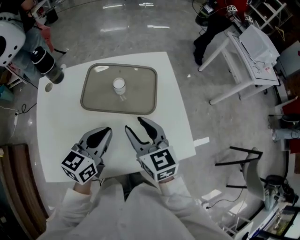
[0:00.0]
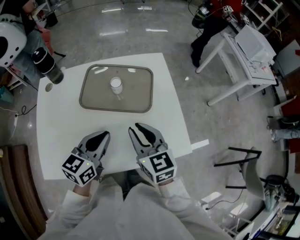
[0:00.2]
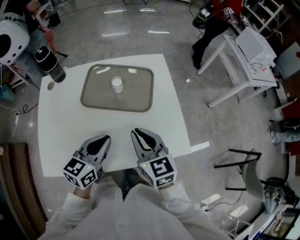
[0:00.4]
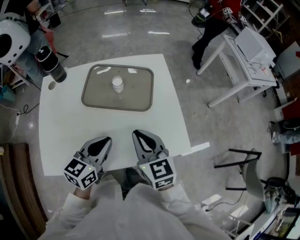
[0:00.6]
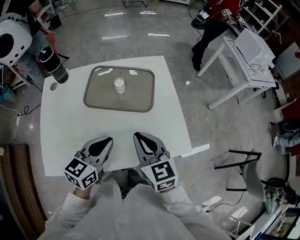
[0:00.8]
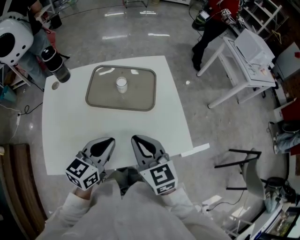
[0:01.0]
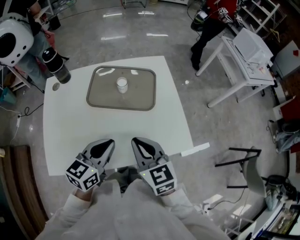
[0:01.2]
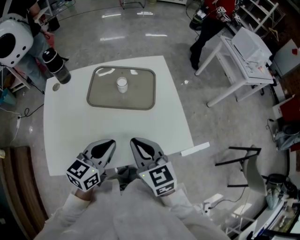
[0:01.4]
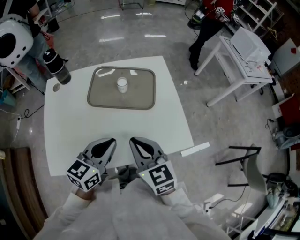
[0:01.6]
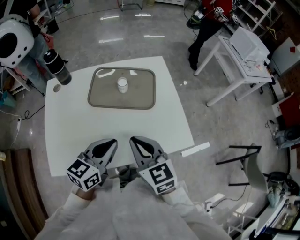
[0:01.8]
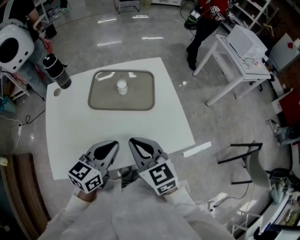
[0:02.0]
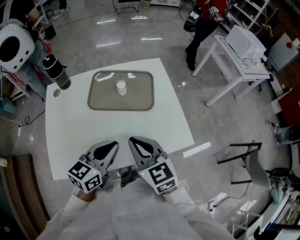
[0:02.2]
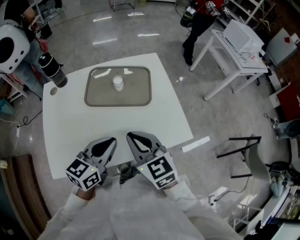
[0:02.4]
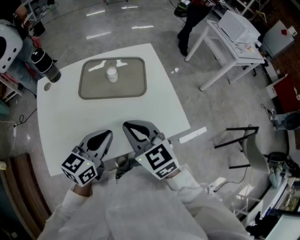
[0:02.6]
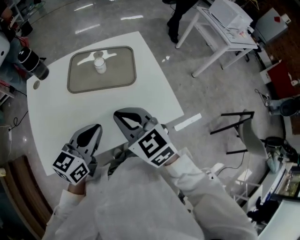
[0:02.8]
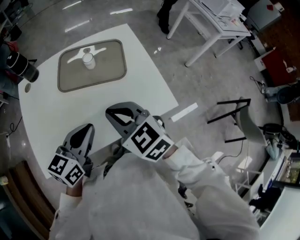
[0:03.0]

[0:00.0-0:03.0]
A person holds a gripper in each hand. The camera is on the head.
0:00.0 to 0:01.6: The two grippers go about 10 cm backward. The right gripper closes its fingers.
0:01.6 to 0:03.0: The grippers move only a little.

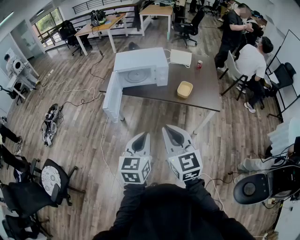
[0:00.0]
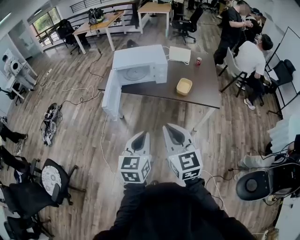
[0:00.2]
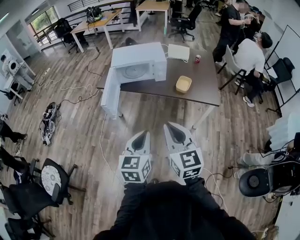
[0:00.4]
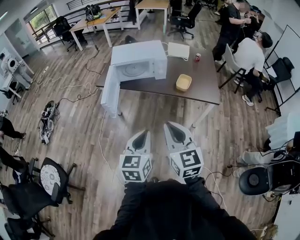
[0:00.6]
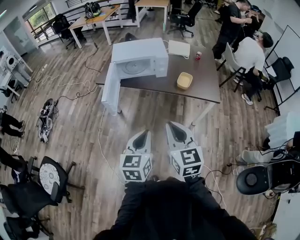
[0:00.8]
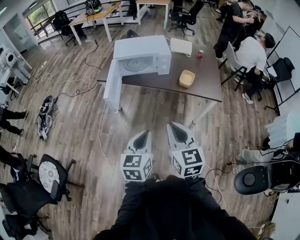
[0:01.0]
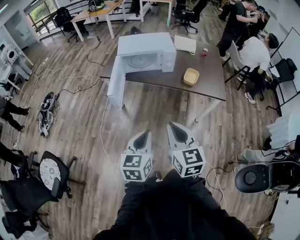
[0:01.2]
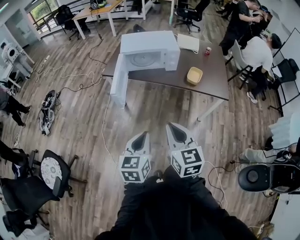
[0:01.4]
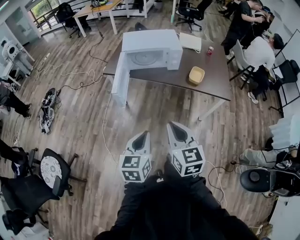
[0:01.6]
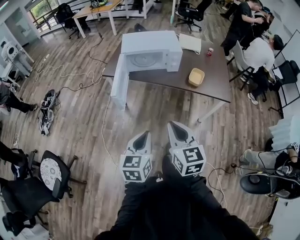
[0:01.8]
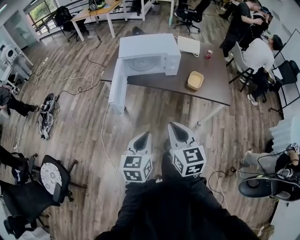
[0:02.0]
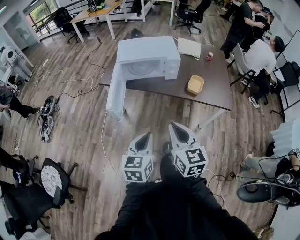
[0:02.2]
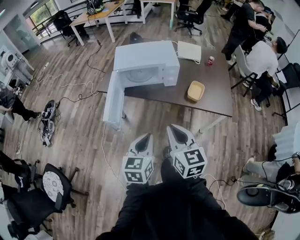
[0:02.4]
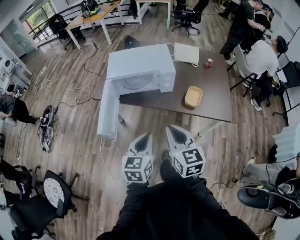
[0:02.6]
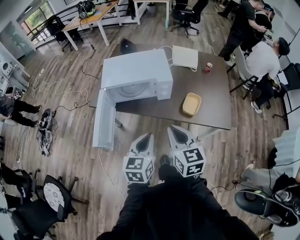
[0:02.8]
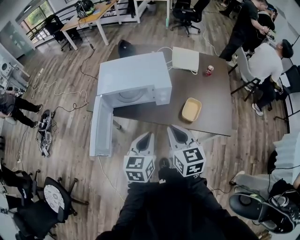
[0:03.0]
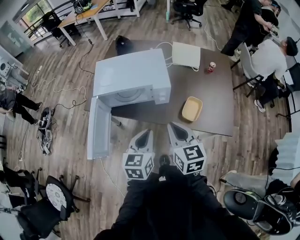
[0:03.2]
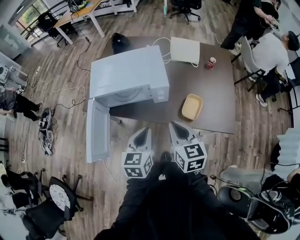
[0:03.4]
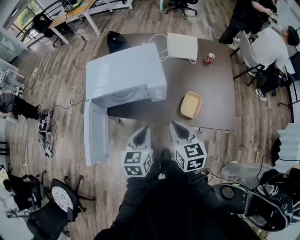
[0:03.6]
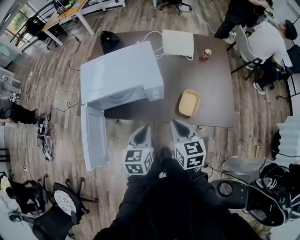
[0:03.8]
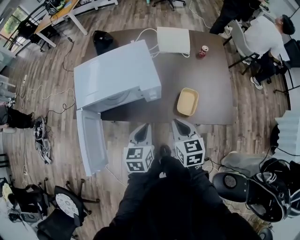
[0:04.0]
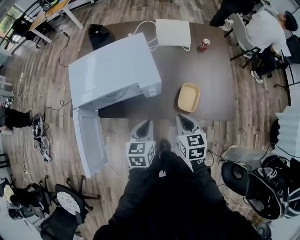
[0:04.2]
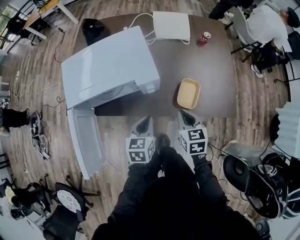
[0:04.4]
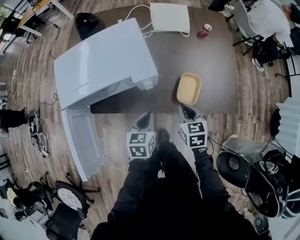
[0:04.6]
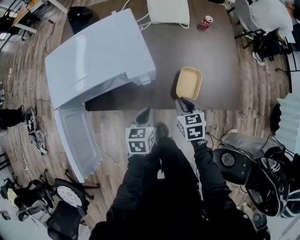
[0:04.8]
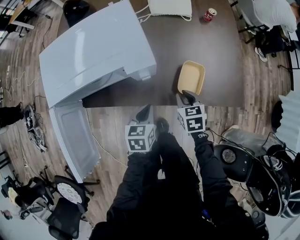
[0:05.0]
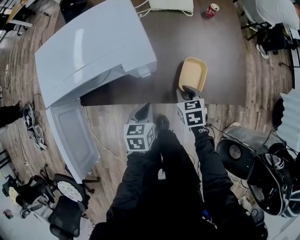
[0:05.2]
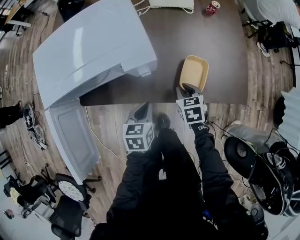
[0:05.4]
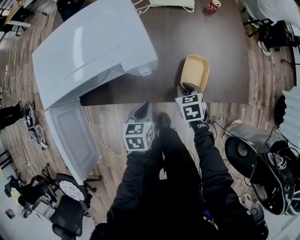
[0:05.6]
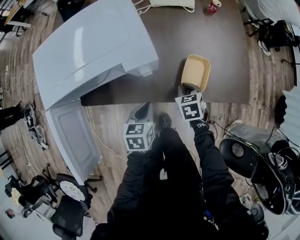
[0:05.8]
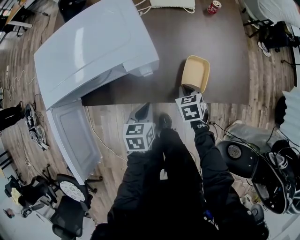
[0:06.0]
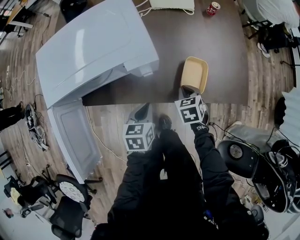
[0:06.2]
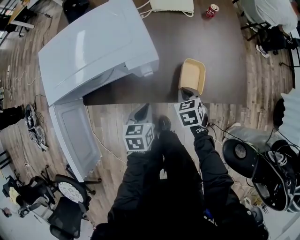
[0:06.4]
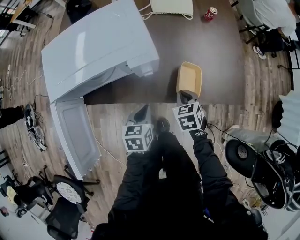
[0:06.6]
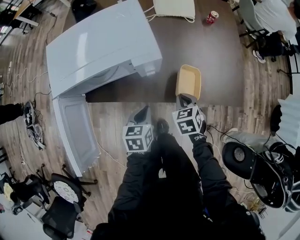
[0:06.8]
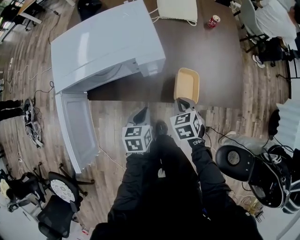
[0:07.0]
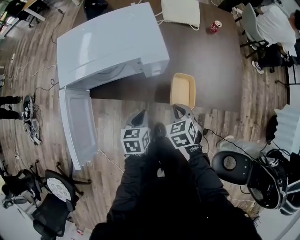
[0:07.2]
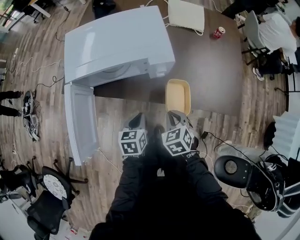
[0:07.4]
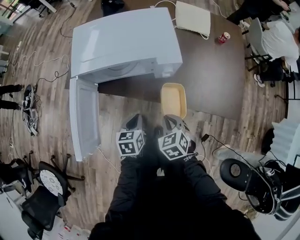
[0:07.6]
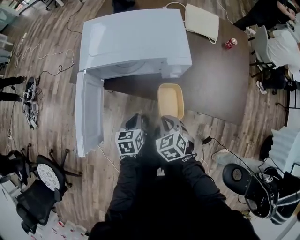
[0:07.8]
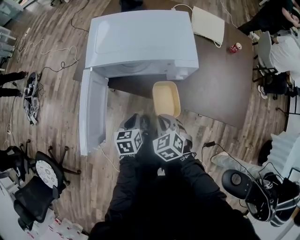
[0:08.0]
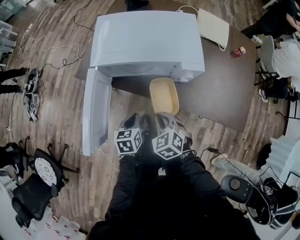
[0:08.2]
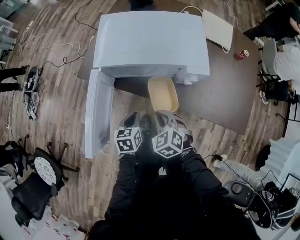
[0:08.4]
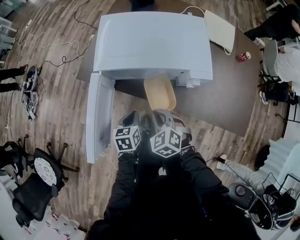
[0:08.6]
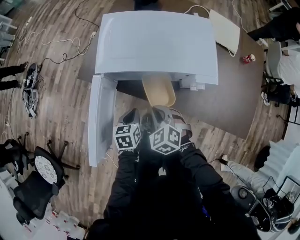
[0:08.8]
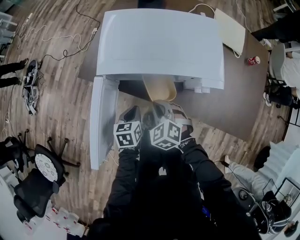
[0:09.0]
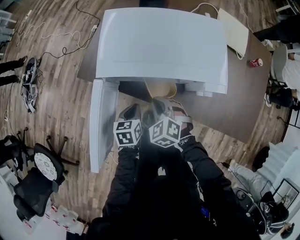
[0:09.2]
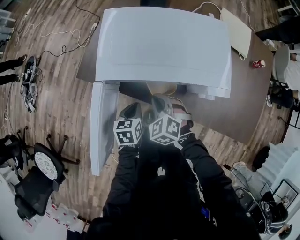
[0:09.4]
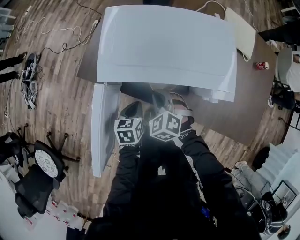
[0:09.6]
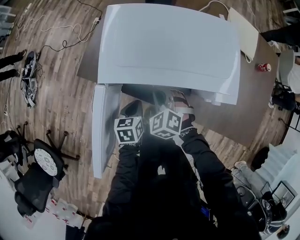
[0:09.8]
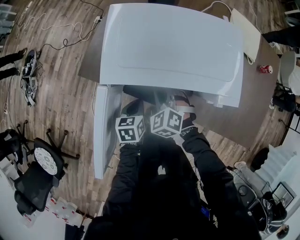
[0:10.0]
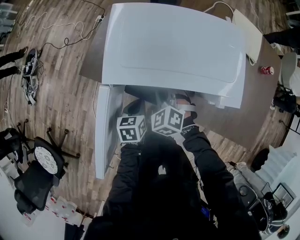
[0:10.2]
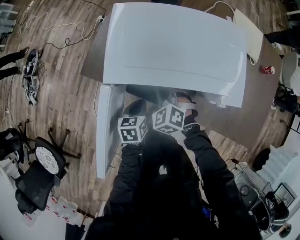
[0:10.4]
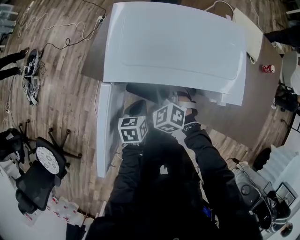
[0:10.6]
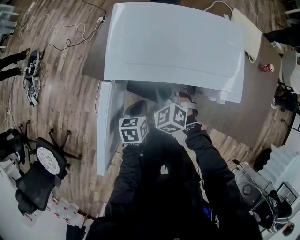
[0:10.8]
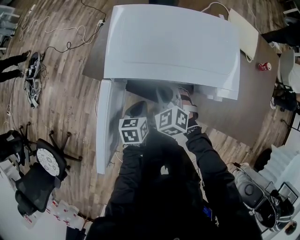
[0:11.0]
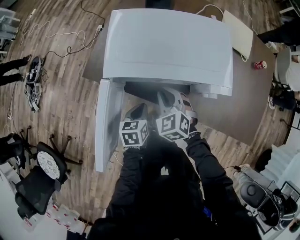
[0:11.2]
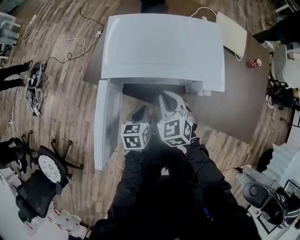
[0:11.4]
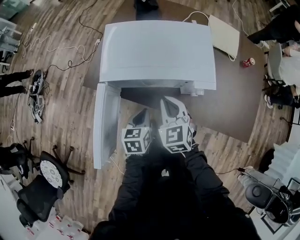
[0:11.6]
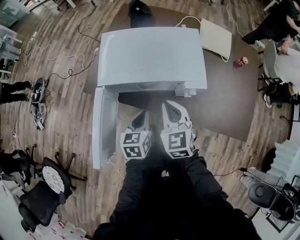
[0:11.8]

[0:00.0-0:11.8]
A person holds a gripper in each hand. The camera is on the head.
0:00.0 to 0:01.4: The right gripper moves downward and to the left, approximately 10 cm. Meanwhile the left gripper is displaced to the left and downward by approximately 10 cm.
0:01.4 to 0:03.0: The two grippers go about 35 cm forward.
0:03.0 to 0:04.4: The left gripper moves downward and forward, roughly 20 cm; the right gripper heads downward, forward and to the right, covering roughly 25 cm, and rotates about 20 degrees.
0:04.4 to 0:06.0: Both grippers travel together downward, about 15 cm. The right gripper turns by about 20 degrees.
0:06.0 to 0:07.4: The right gripper travels backward, upward and to the left by roughly 20 cm, and changes its angle by approximately 20 degrees, while the left gripper moves backward and to the left, about 10 cm.
0:07.4 to 0:08.8: Both grippers move to the left and forward, approximately 20 cm. The right gripper swivels some 30 degrees.
0:08.8 to 0:10.4: The right gripper moves forward, roughly 15 cm; the left gripper heads forward, covering some 5 cm.
0:10.4 to 0:11.8: The left gripper goes roughly 15 cm upward and to the right; the right gripper moves upward, backward and to the right, roughly 20 cm, and rotates roughly 40 degrees.

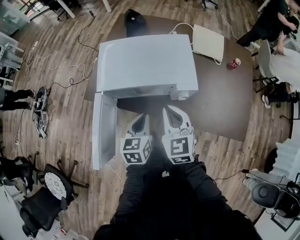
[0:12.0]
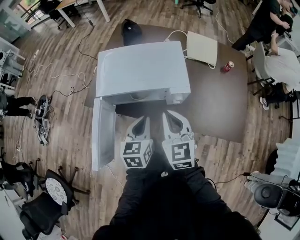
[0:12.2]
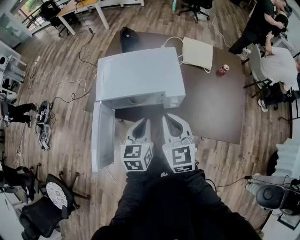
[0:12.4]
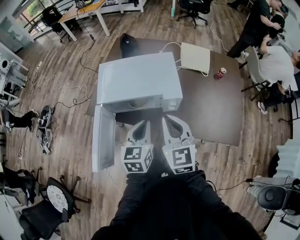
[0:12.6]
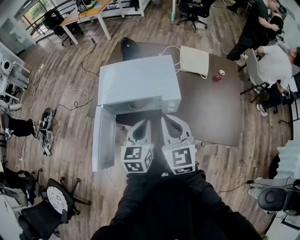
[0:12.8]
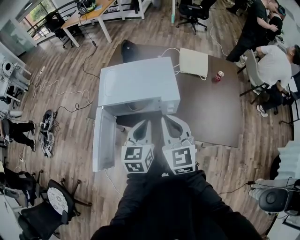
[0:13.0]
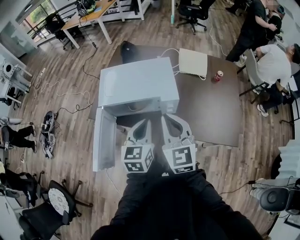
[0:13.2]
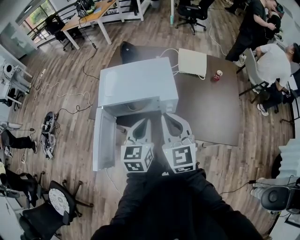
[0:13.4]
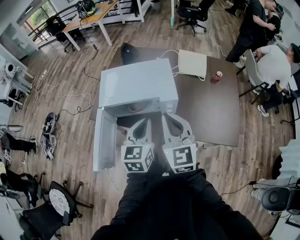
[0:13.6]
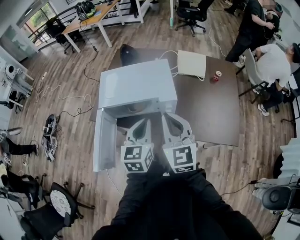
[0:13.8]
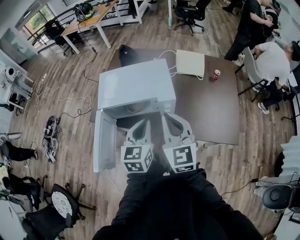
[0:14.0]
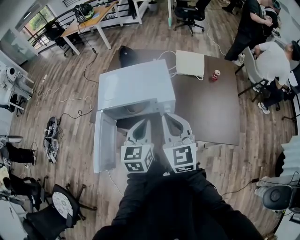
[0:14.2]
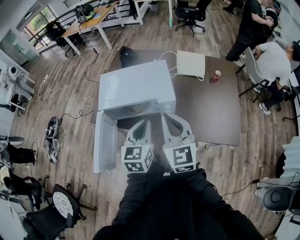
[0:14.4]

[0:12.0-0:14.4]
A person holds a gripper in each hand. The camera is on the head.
0:12.0 to 0:13.2: The left gripper travels upward and to the right by roughly 15 cm. Meanwhile the right gripper moves upward, backward and to the right, some 15 cm.
0:13.2 to 0:14.4: The grippers move only a little.

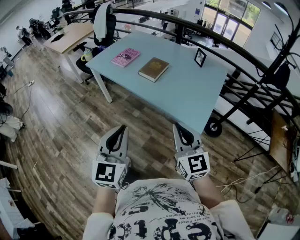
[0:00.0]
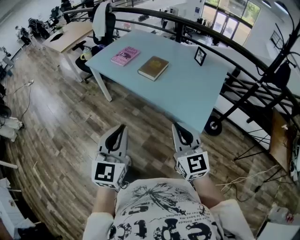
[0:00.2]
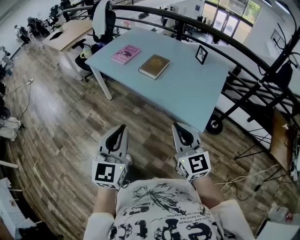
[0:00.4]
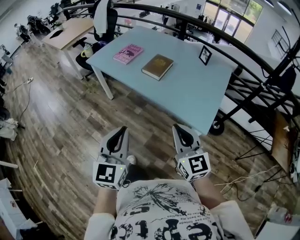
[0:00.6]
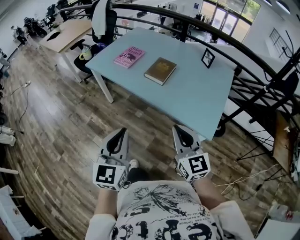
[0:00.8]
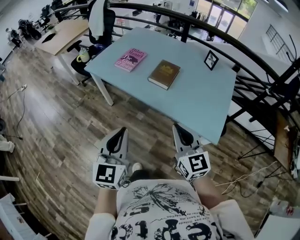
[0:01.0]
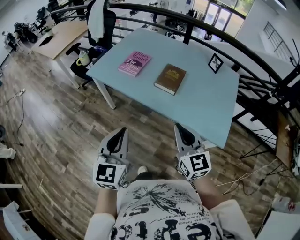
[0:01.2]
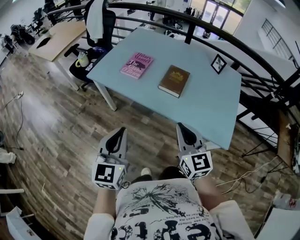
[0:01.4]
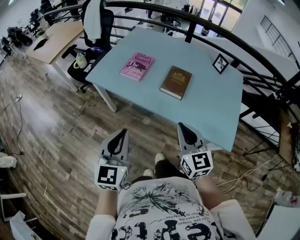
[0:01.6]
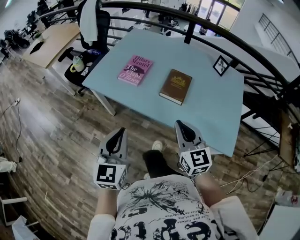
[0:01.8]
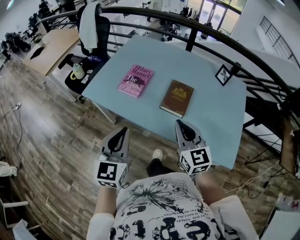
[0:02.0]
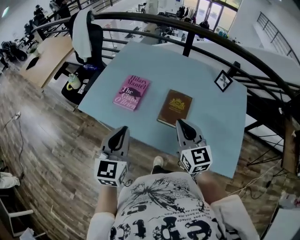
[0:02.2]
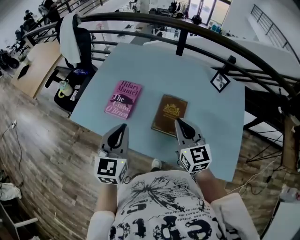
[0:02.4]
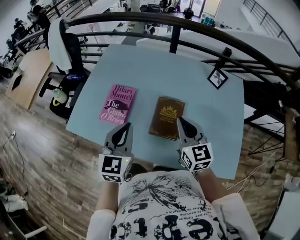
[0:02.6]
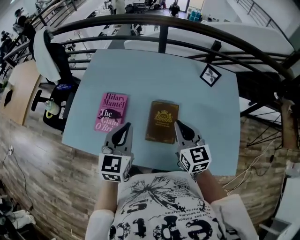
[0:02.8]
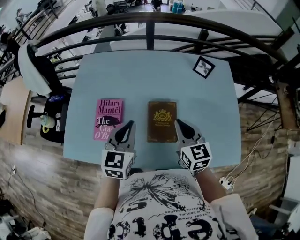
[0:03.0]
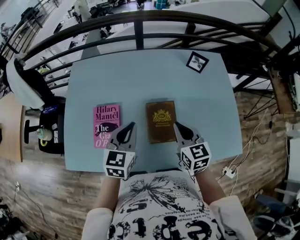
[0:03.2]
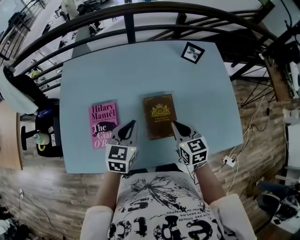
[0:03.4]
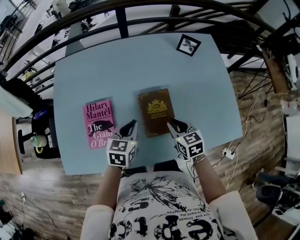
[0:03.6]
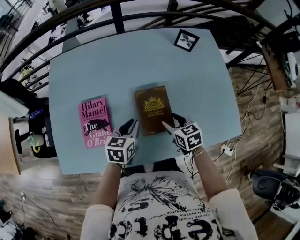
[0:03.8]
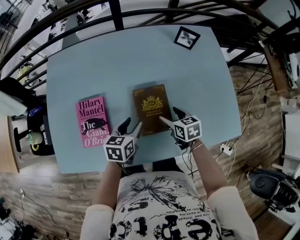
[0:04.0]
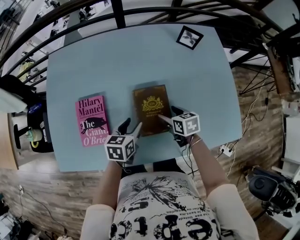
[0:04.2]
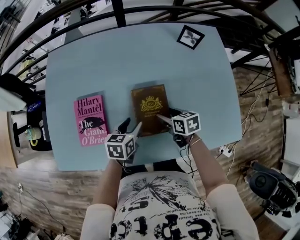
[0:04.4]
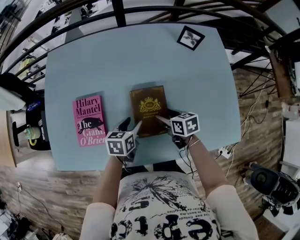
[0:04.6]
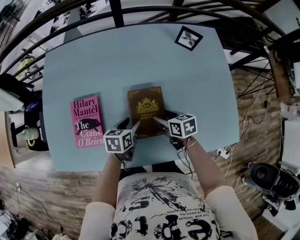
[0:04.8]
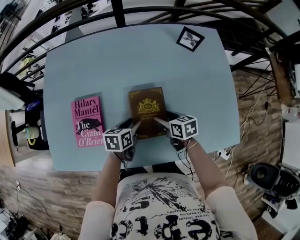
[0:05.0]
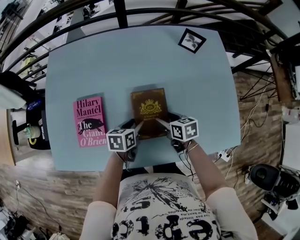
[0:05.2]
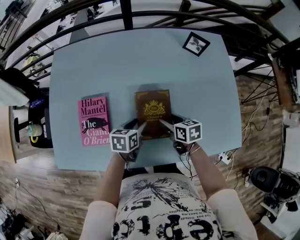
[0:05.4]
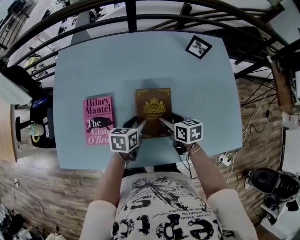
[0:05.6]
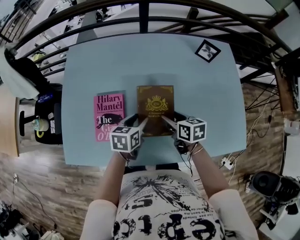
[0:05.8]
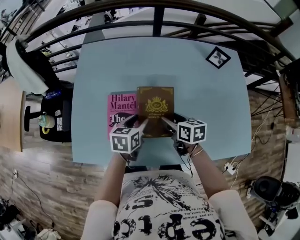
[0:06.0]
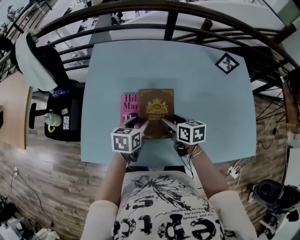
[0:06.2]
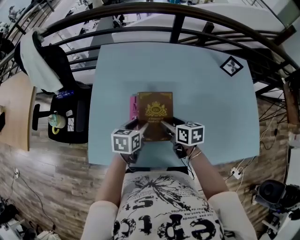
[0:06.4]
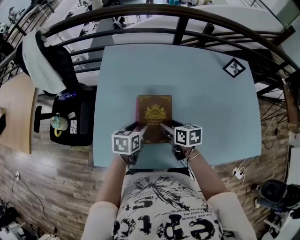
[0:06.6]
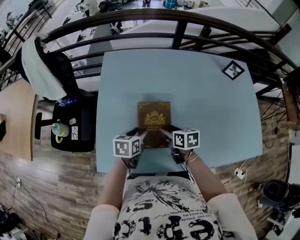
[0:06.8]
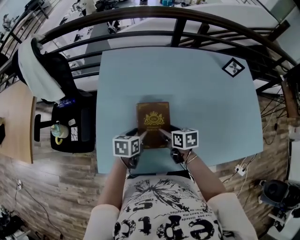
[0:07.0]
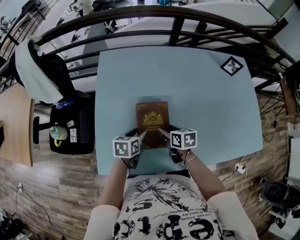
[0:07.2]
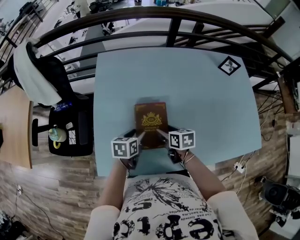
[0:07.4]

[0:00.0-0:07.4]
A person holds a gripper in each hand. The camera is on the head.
0:00.0 to 0:01.4: The grippers both shift forward and to the left by about 30 cm.
0:01.4 to 0:03.0: The right gripper shifts by about 40 cm, and swivels approximately 30 degrees; the left gripper changes place by some 50 cm, and turns by about 30 degrees.
0:03.0 to 0:04.4: Both grippers move downward, roughly 20 cm. The left gripper swivels approximately 40 degrees, and opens. The right gripper rotates approximately 40 degrees, and opens up.
0:04.4 to 0:06.0: Both grippers travel together to the left and upward, about 15 cm.
0:06.0 to 0:07.4: The grippers both shift to the left by some 20 cm.
